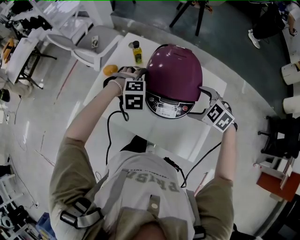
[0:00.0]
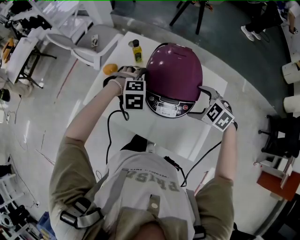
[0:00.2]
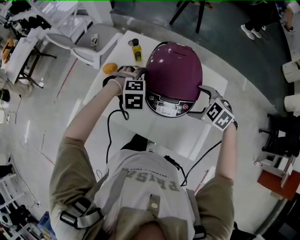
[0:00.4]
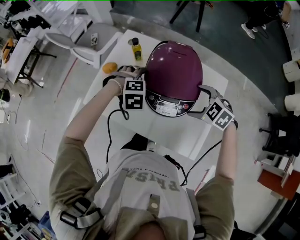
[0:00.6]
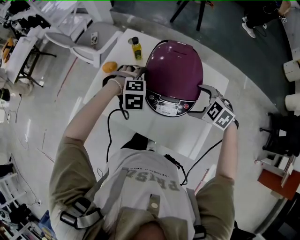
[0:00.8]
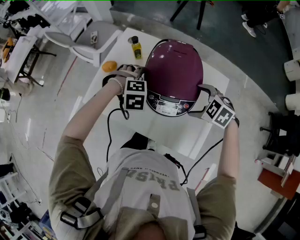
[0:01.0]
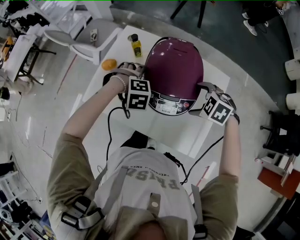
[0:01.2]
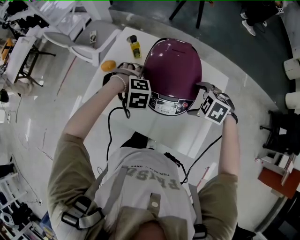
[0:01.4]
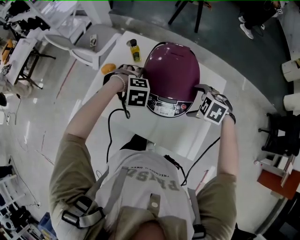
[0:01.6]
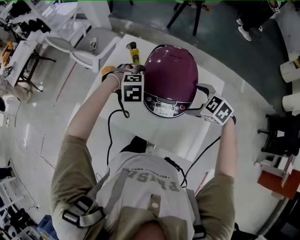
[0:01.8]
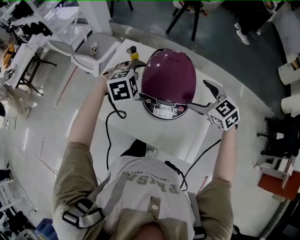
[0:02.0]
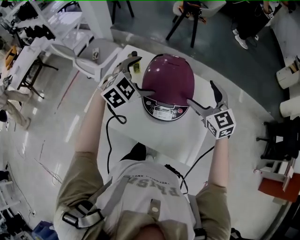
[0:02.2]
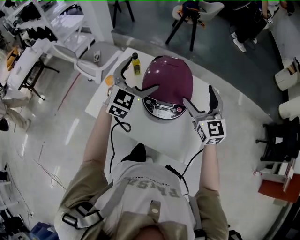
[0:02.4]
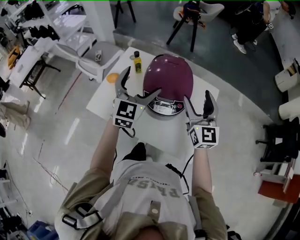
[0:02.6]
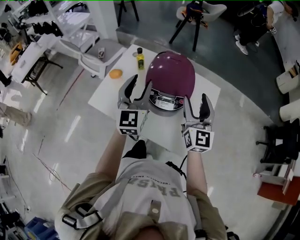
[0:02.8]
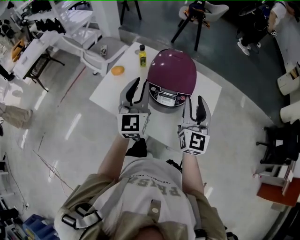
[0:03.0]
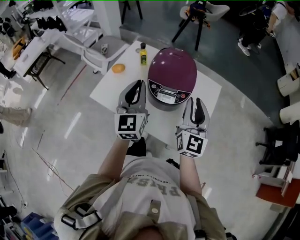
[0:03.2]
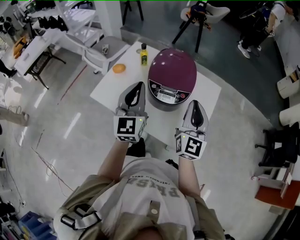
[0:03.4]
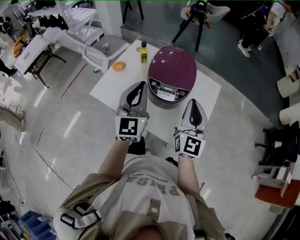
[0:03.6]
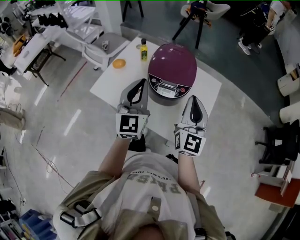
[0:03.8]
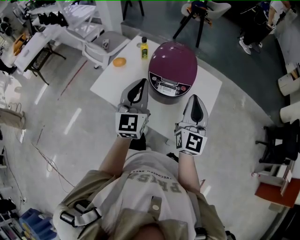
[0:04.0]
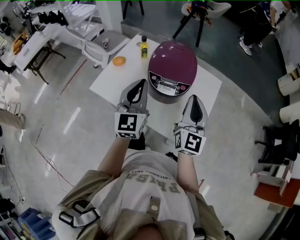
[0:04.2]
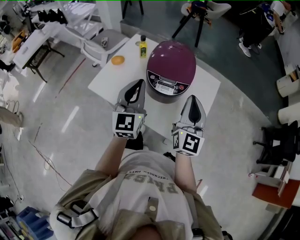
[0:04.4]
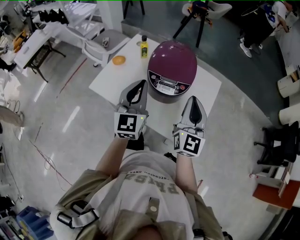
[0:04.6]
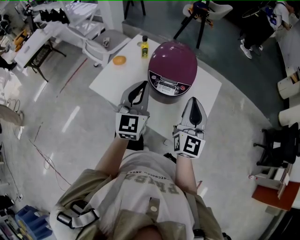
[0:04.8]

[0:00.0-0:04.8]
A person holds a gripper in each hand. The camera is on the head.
0.0 to 1.6 s: The grippers stay close to where they were, moving slightly.
1.6 to 3.2 s: Both grippers travel together upward, some 20 cm. The left gripper tips its fingers upward by roughly 90 degrees, and closes up; the right gripper tips its fingers upward by approximately 80 degrees, and closes up.
3.2 to 4.8 s: There are only small adjustments of the grippers.

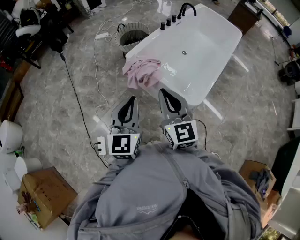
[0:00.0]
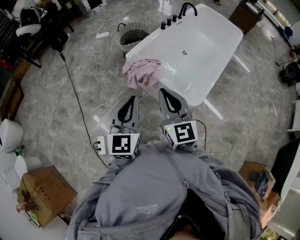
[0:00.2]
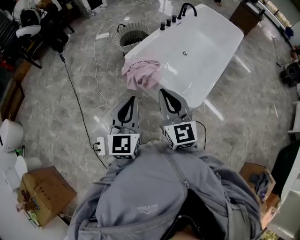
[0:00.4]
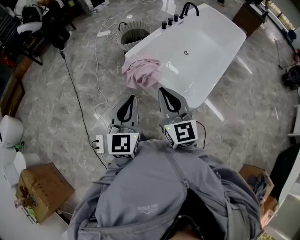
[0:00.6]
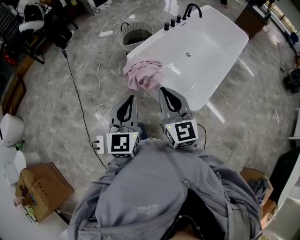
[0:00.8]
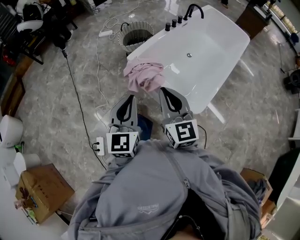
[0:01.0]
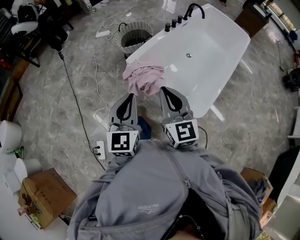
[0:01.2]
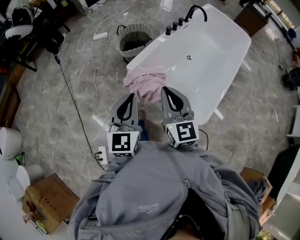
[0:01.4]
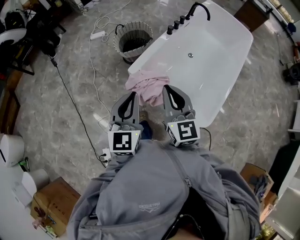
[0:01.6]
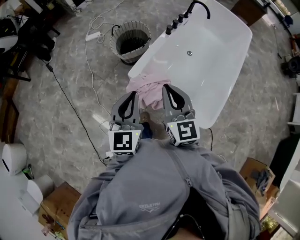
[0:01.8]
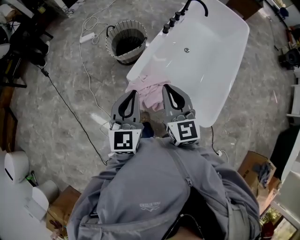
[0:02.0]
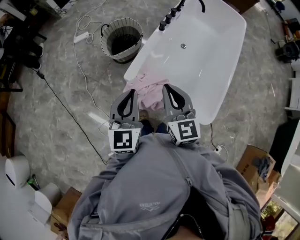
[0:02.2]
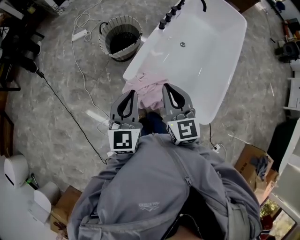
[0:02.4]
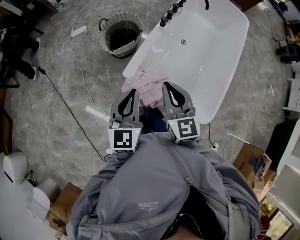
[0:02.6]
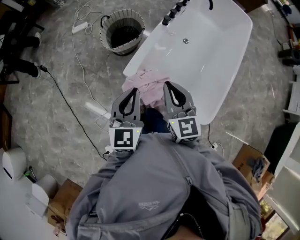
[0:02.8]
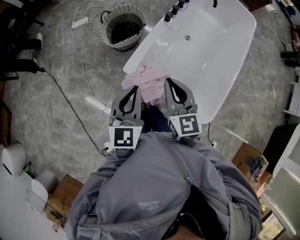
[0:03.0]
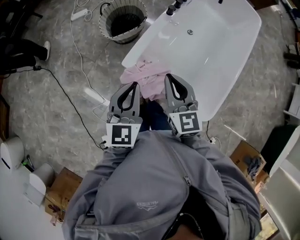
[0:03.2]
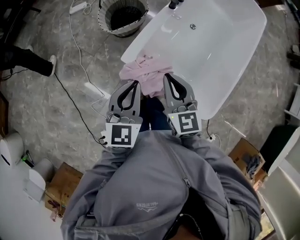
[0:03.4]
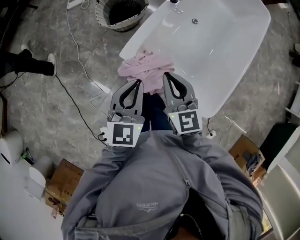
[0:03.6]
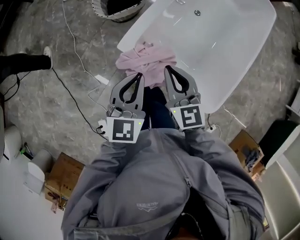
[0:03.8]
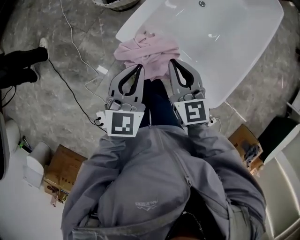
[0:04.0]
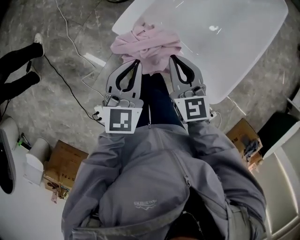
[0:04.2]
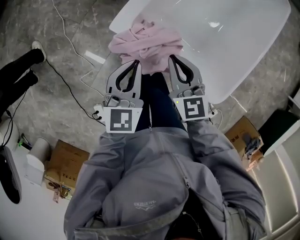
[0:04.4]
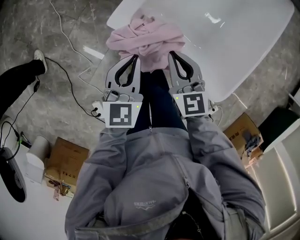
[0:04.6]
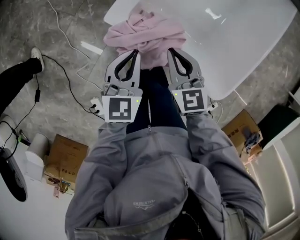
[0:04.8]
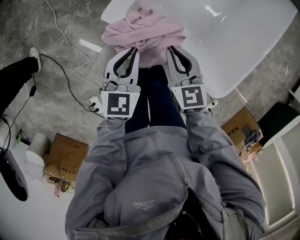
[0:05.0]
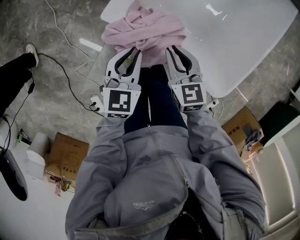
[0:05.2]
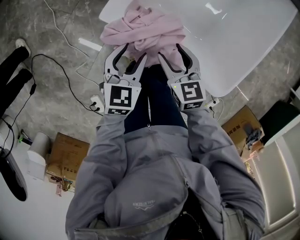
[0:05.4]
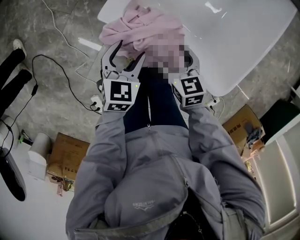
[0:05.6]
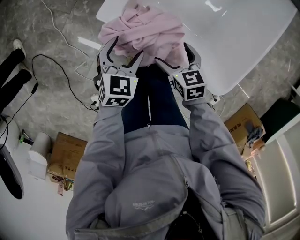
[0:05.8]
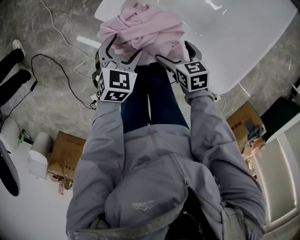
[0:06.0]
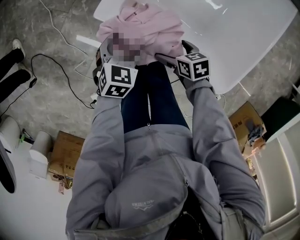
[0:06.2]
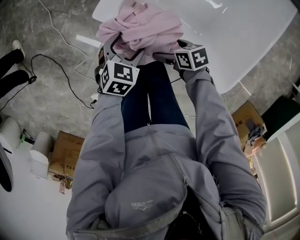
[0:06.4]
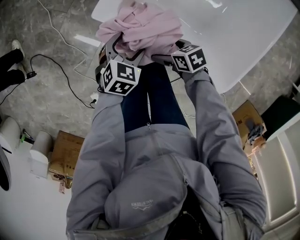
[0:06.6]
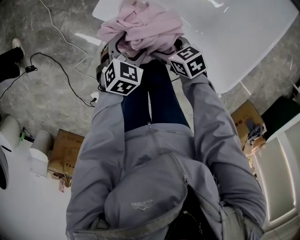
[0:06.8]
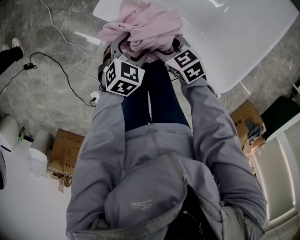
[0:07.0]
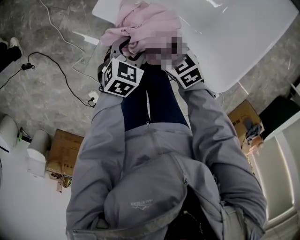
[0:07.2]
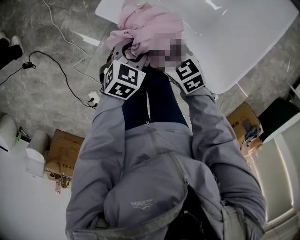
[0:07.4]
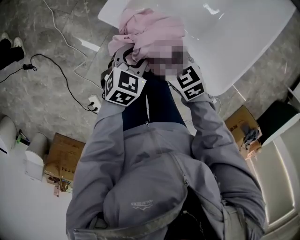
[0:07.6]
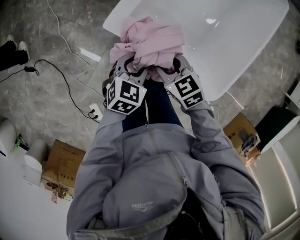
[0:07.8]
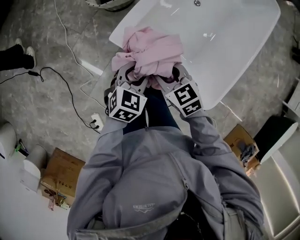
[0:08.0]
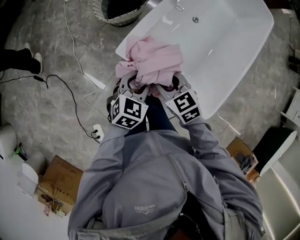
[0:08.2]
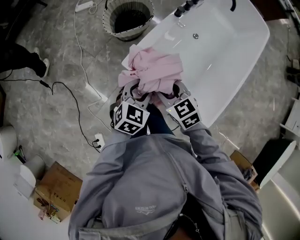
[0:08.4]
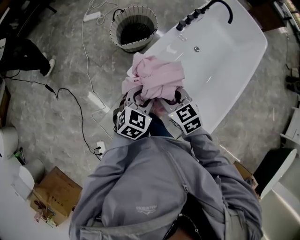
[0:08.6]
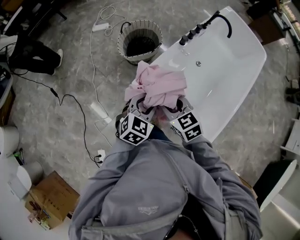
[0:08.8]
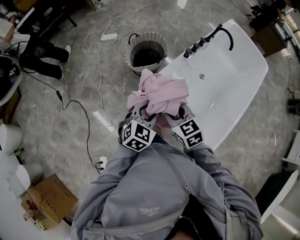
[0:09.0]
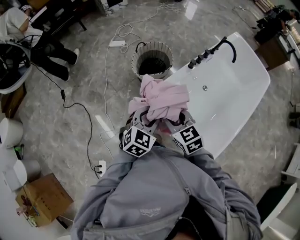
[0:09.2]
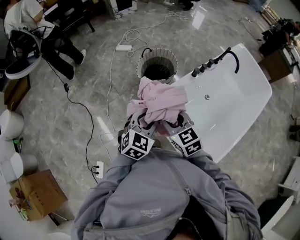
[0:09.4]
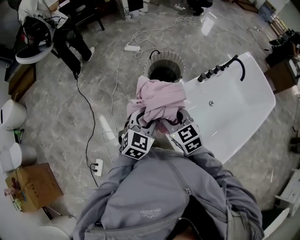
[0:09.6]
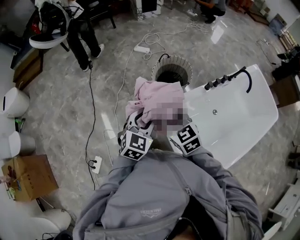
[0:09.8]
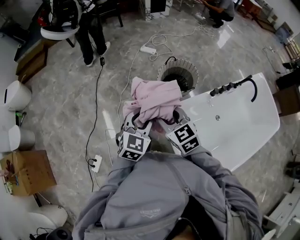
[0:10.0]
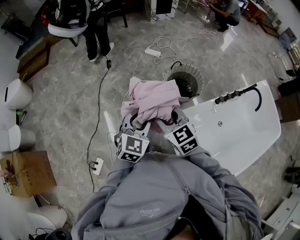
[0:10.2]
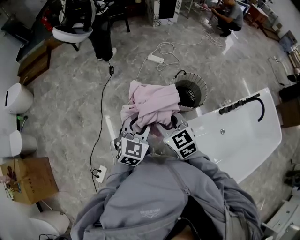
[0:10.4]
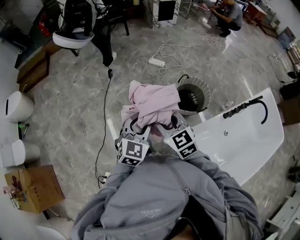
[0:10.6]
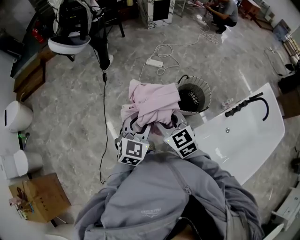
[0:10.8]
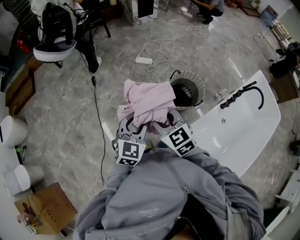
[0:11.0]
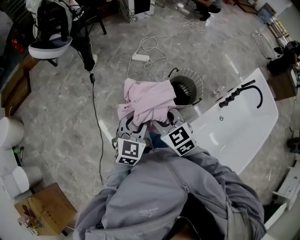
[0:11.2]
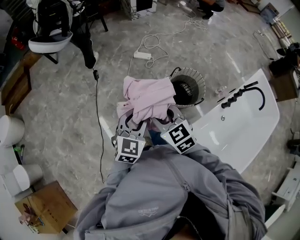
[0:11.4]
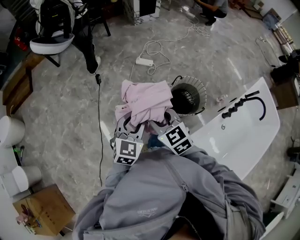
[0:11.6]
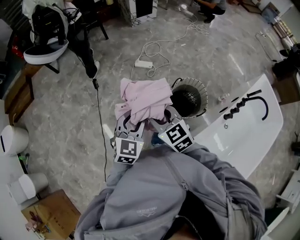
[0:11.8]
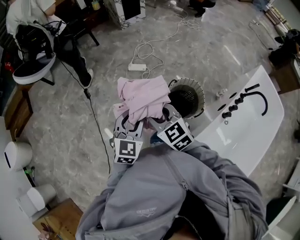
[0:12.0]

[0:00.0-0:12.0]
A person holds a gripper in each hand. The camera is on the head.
0.0 to 1.6 s: Both grippers travel together forward, some 25 cm.
1.6 to 3.0 s: Both grippers move forward and downward, about 15 cm.
3.0 to 4.4 s: The two grippers go approximately 20 cm downward.
4.4 to 6.0 s: The grippers both shift downward by roughly 20 cm. The right gripper changes its angle by some 40 degrees, and opens. Meanwhile the left gripper swivels about 30 degrees, and opens its fingers.
6.0 to 7.6 s: The right gripper moves upward, about 10 cm, swivels about 20 degrees, and closes, while the left gripper moves about 5 cm, and closes.
7.6 to 9.0 s: The two grippers go about 30 cm upward. The left gripper rotates approximately 20 degrees.
9.0 to 10.4 s: The right gripper shifts by roughly 30 cm, and changes its angle by about 30 degrees, while the left gripper moves approximately 30 cm, and swivels some 40 degrees.
10.4 to 12.0 s: Both grippers travel together forward, some 30 cm.

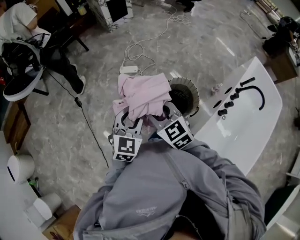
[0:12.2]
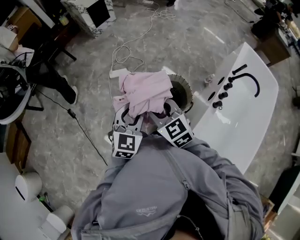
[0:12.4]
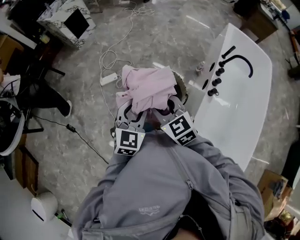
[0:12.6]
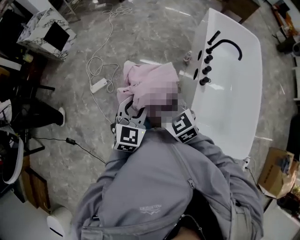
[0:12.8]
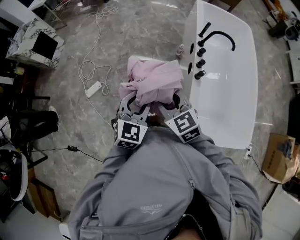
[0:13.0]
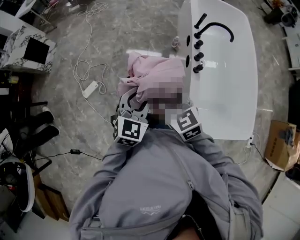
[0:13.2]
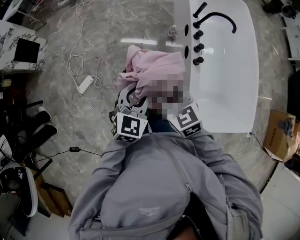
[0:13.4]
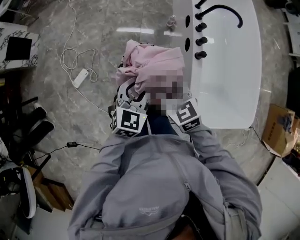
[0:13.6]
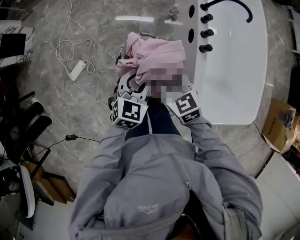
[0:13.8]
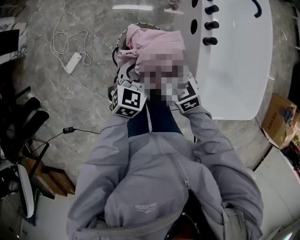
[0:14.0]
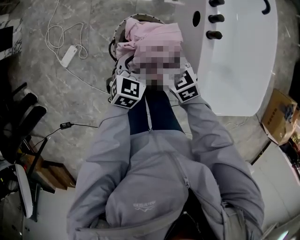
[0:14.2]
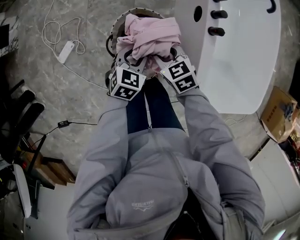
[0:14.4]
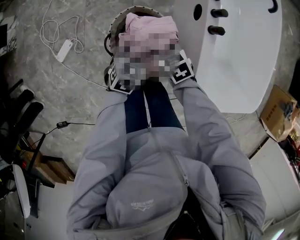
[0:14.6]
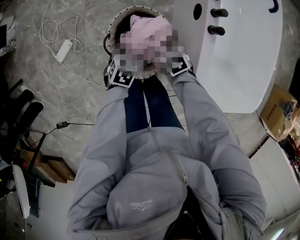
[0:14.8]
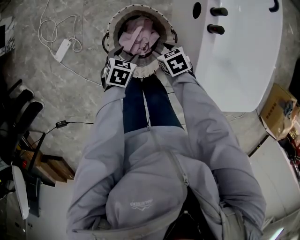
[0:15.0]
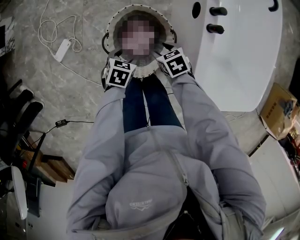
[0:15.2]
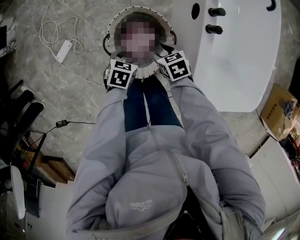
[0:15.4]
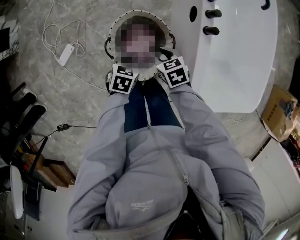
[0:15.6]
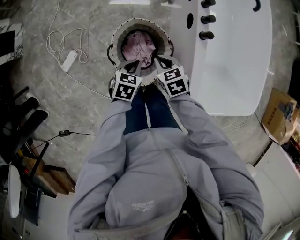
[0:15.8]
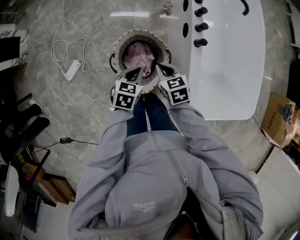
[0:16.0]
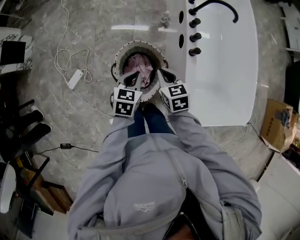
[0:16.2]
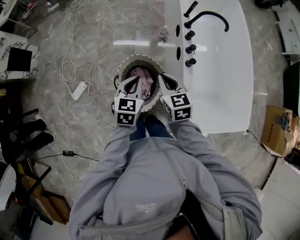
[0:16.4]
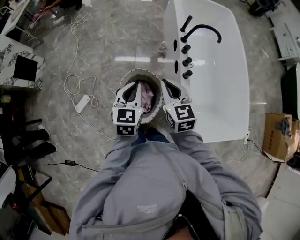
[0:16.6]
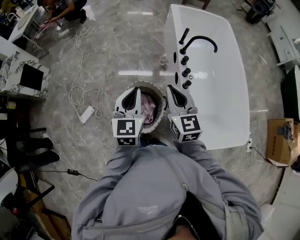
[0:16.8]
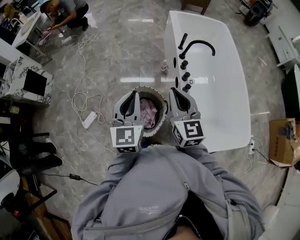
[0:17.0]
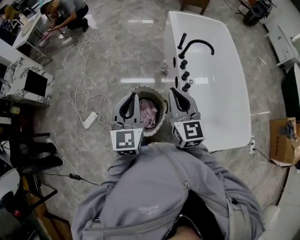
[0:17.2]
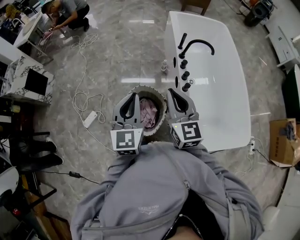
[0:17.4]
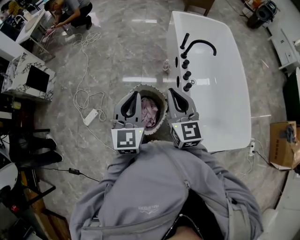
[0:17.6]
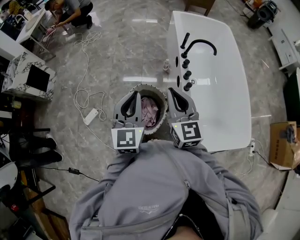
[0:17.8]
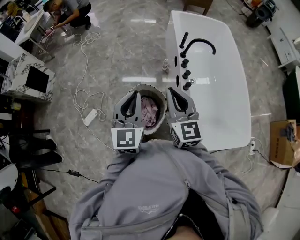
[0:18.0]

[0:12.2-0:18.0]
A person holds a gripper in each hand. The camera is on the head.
12.2 to 13.6 s: The left gripper changes place by approximately 30 cm, and changes its angle by approximately 50 degrees, while the right gripper shifts by some 30 cm, and turns by approximately 50 degrees.
13.6 to 15.0 s: Both grippers move downward, roughly 30 cm. The left gripper angles its fingers downward, by some 30 degrees; the right gripper angles its fingers downward, by approximately 30 degrees.
15.0 to 16.6 s: The two grippers go some 35 cm upward. The right gripper tilts its fingers approximately 40 degrees upward, and closes its fingers; the left gripper angles its fingers upward, by roughly 40 degrees, and closes up.
16.6 to 18.0 s: The two grippers go some 15 cm upward.

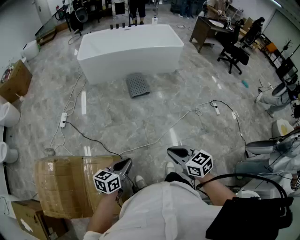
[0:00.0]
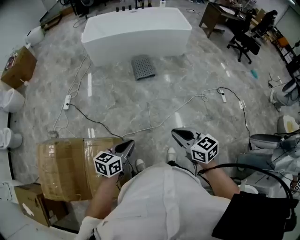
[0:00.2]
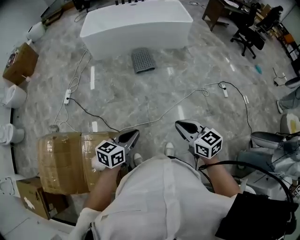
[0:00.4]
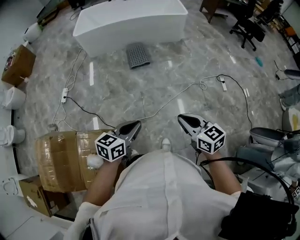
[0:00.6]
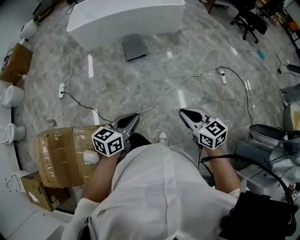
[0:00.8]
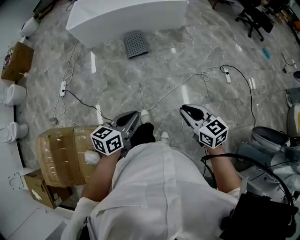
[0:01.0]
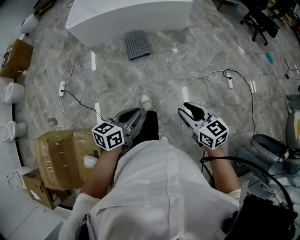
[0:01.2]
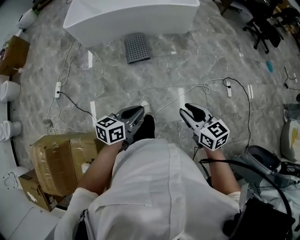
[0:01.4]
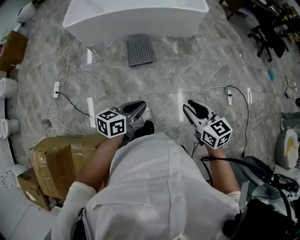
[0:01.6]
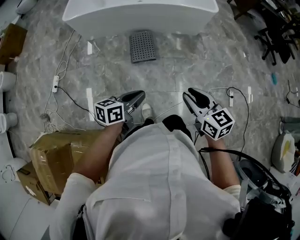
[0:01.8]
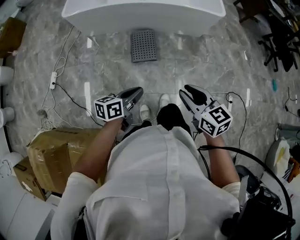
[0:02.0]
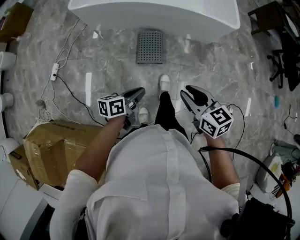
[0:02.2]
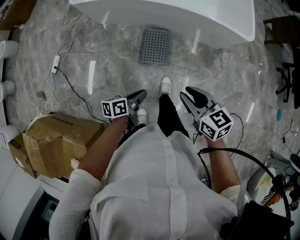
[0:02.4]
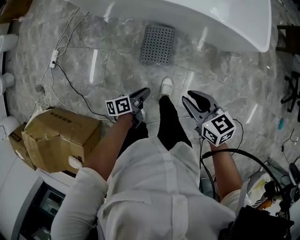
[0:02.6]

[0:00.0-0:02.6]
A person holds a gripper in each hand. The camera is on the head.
0.0 to 1.2 s: The right gripper moves approximately 35 cm, and opens its fingers.
1.2 to 2.6 s: The right gripper ends up approximately 70 cm from where it was, and rotates approximately 30 degrees.
